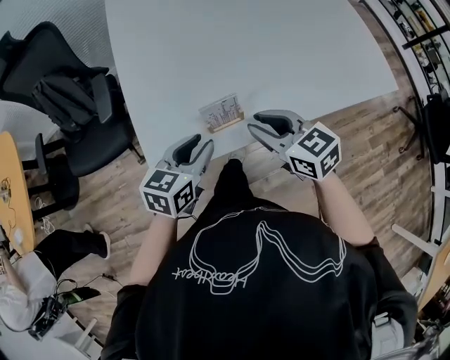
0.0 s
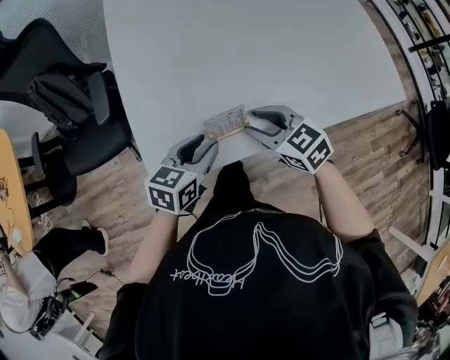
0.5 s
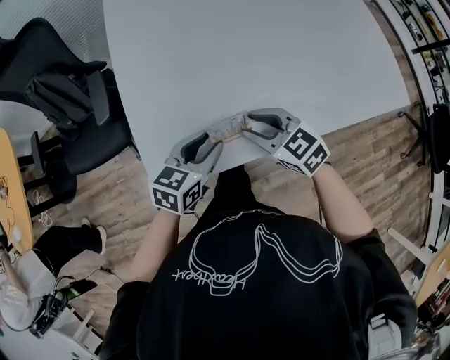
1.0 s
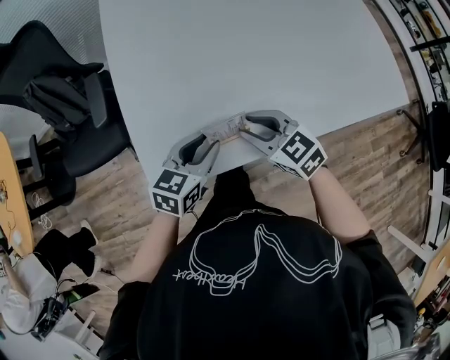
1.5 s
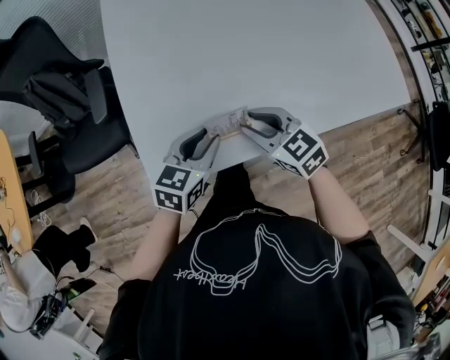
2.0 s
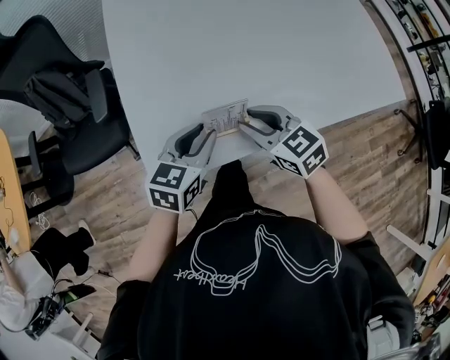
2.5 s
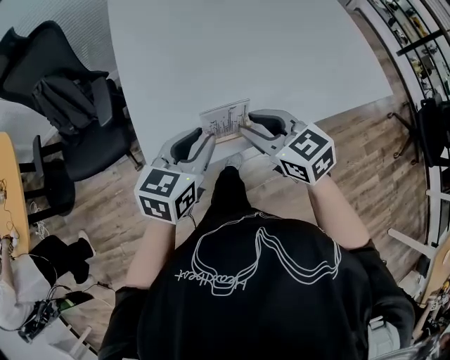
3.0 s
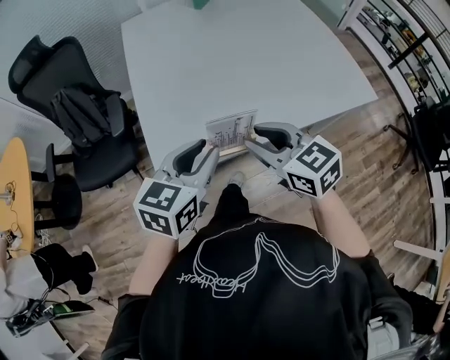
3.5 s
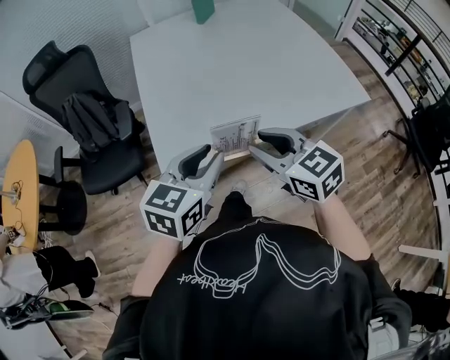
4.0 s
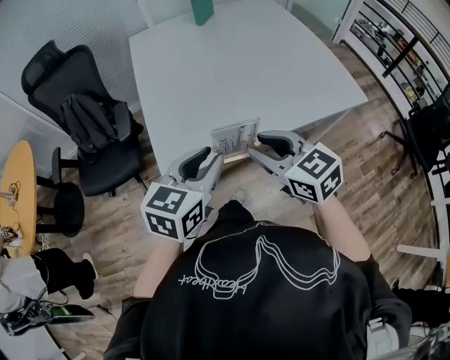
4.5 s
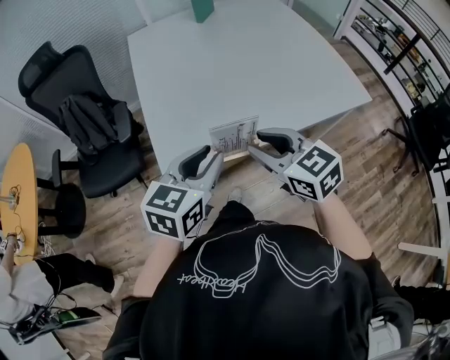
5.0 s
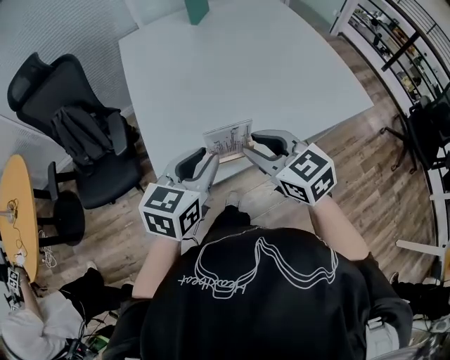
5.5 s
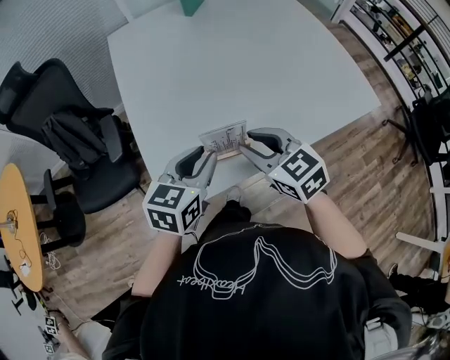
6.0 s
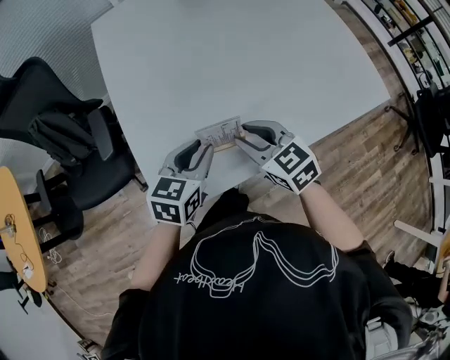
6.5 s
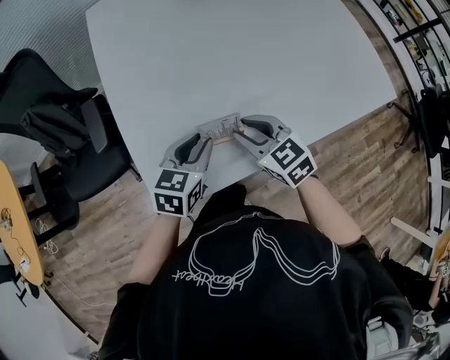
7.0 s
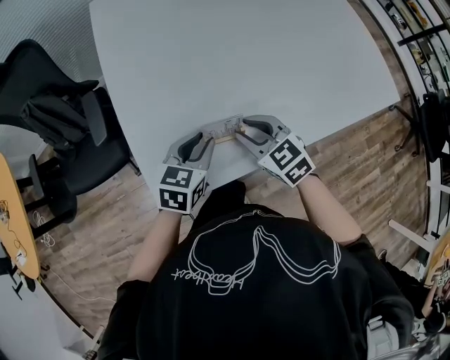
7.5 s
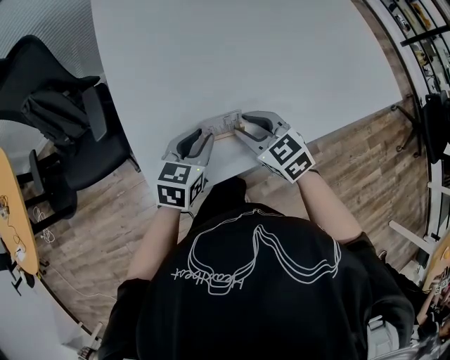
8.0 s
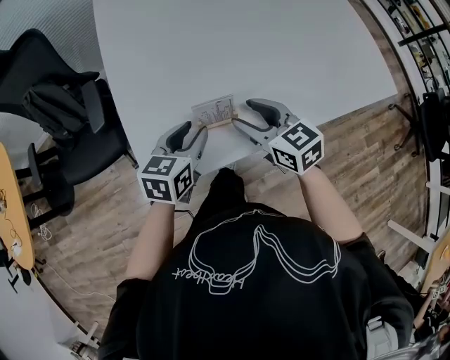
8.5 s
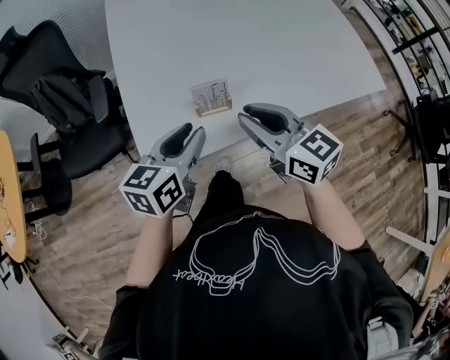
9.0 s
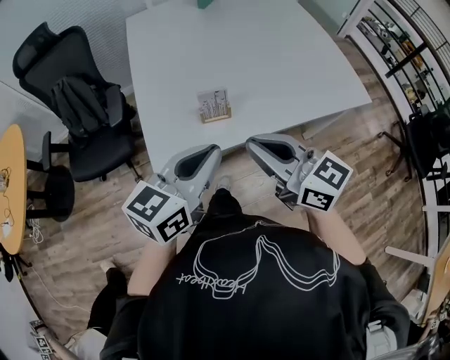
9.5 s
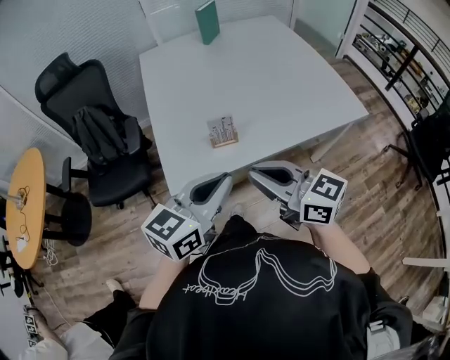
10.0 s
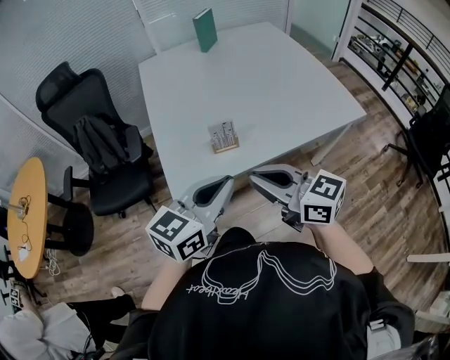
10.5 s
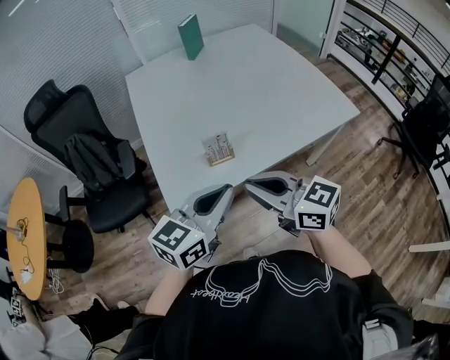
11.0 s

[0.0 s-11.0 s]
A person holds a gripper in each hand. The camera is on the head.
0.0 to 2.0 s: The left gripper moves roughly 5 cm, while the right gripper moves downward, some 5 cm.
2.0 to 3.5 s: Both grippers move upward and backward, some 20 cm.
3.5 to 5.5 s: The right gripper moves approximately 5 cm backward and comes back.
5.5 to 7.5 s: Both grippers travel together downward and forward, some 20 cm.
7.5 to 9.0 s: Both grippers travel together upward and backward, approximately 15 cm. The right gripper swivels approximately 30 degrees, and opens and closes again, while the left gripper rotates about 20 degrees.
9.0 to 11.0 s: Both grippers travel together backward and upward, roughly 20 cm. The left gripper swivels roughly 30 degrees, and closes its fingers.

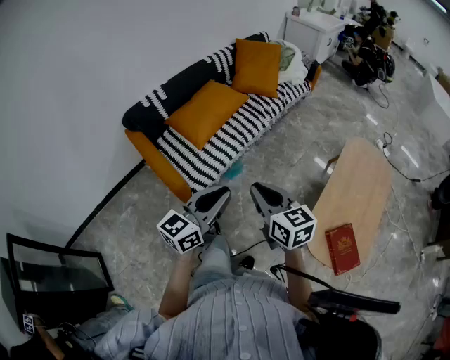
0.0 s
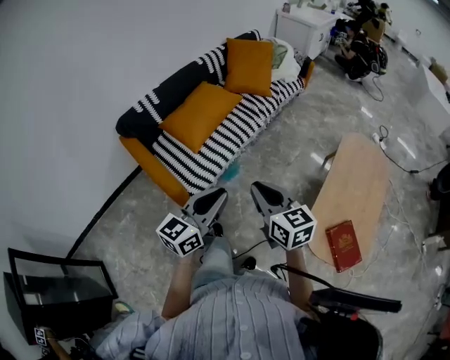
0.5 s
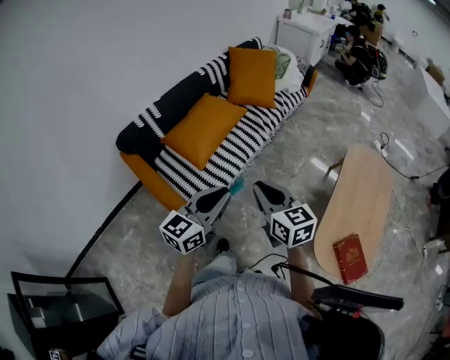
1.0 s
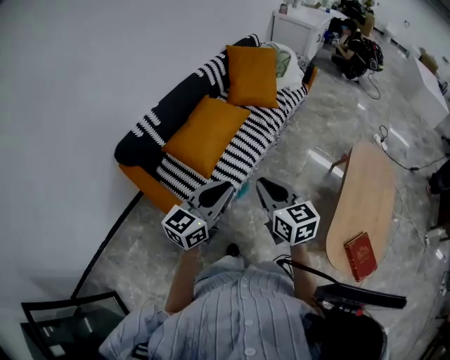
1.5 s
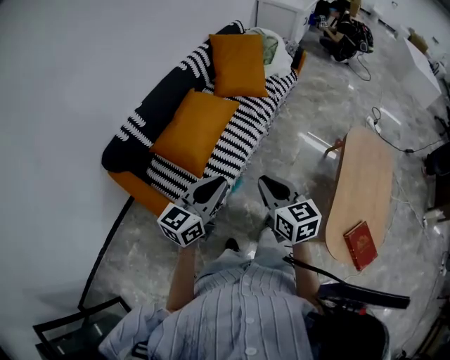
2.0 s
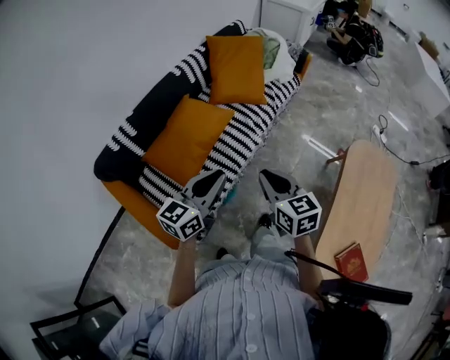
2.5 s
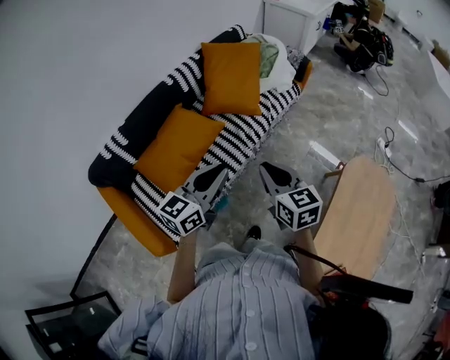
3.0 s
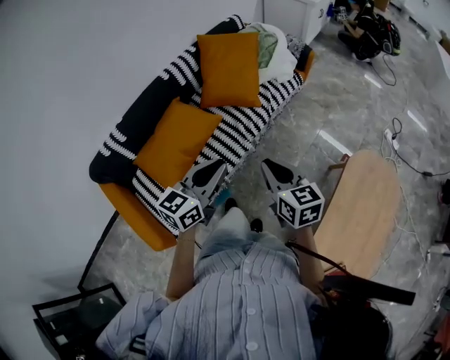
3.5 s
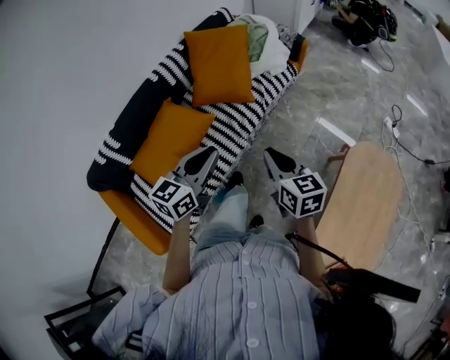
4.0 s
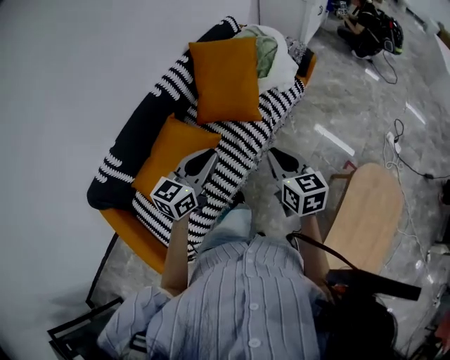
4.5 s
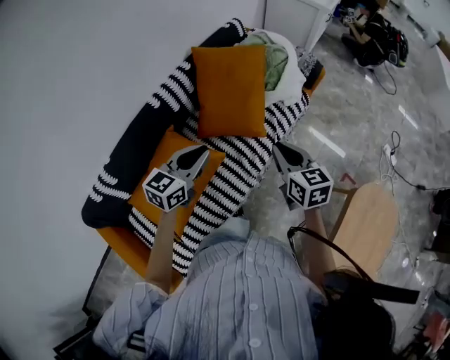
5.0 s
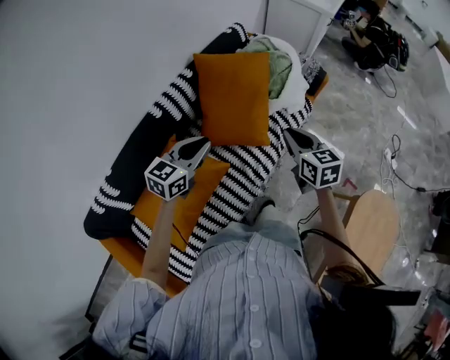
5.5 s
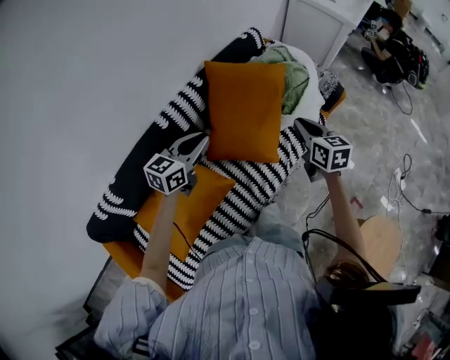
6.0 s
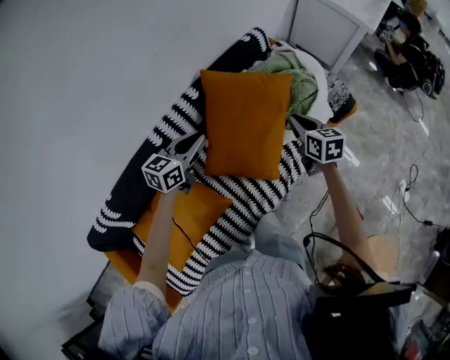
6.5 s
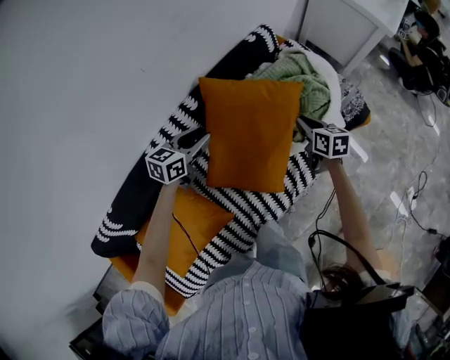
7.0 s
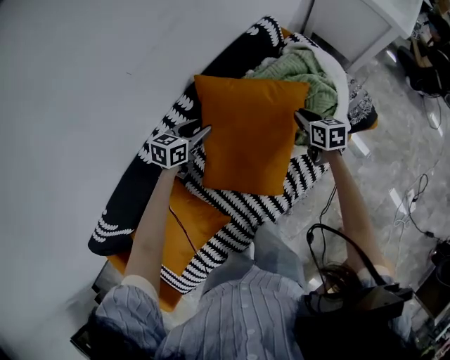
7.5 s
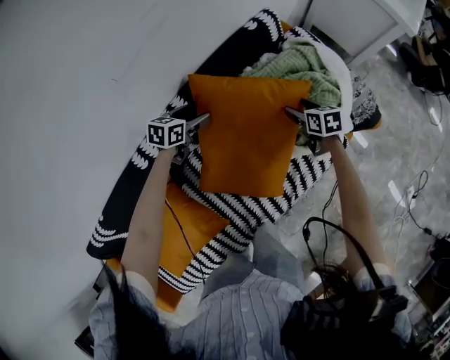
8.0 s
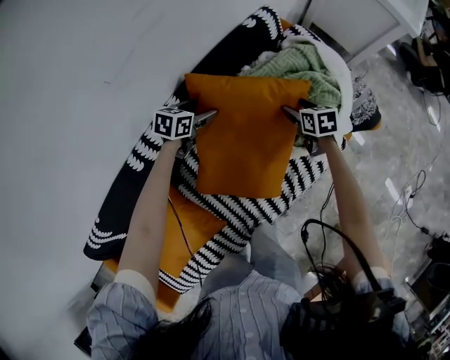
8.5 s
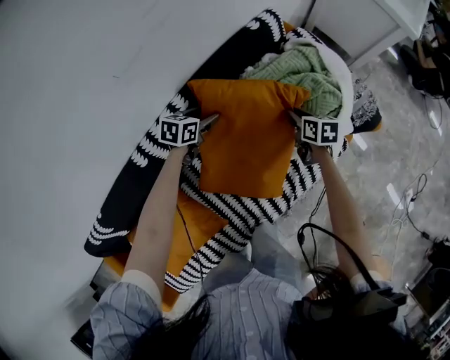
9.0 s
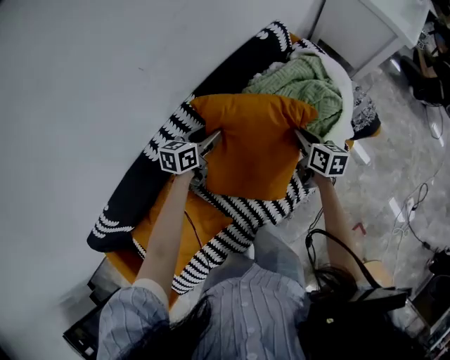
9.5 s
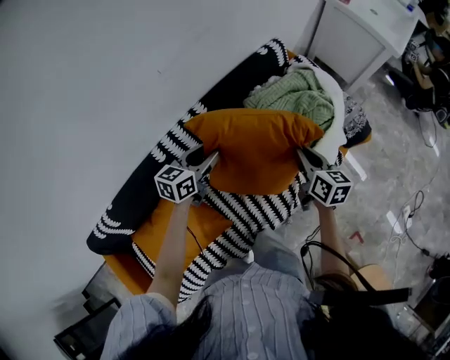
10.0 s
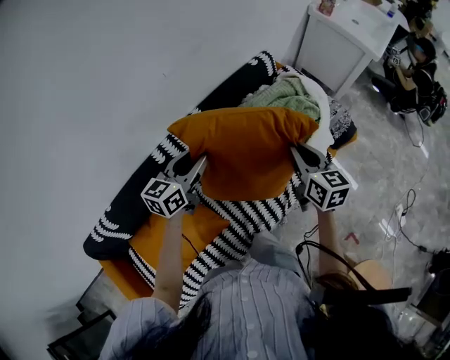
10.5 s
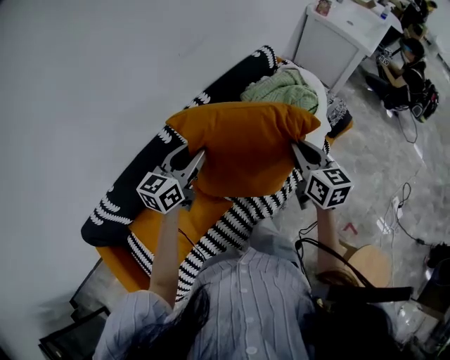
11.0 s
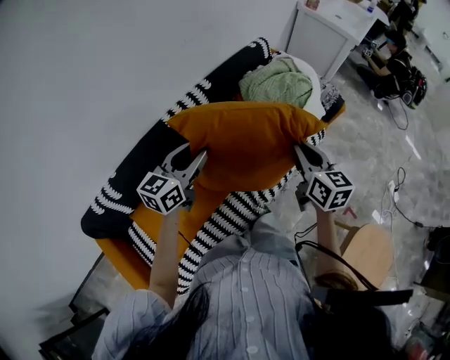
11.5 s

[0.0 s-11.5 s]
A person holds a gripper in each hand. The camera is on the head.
0.0 to 2.0 s: The two grippers go approximately 25 cm forward and to the left.
2.0 to 4.0 s: The two grippers go some 40 cm forward and to the right.
4.0 to 6.0 s: The two grippers travel together, forward, roughly 50 cm.
6.0 to 7.5 s: Both grippers travel together forward and downward, some 35 cm. The left gripper rotates about 20 degrees, and opens up.
7.5 to 9.5 s: The left gripper reaches roughly 10 cm forward, then returns, and opens, then closes again, while the right gripper goes some 5 cm backward, and opens, then closes once more.
9.5 to 11.5 s: The grippers both shift backward and upward by roughly 40 cm. The left gripper turns by about 30 degrees; the right gripper swivels about 30 degrees.

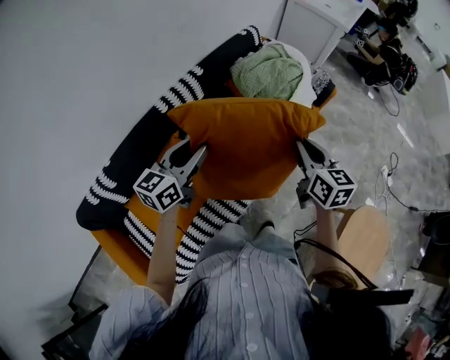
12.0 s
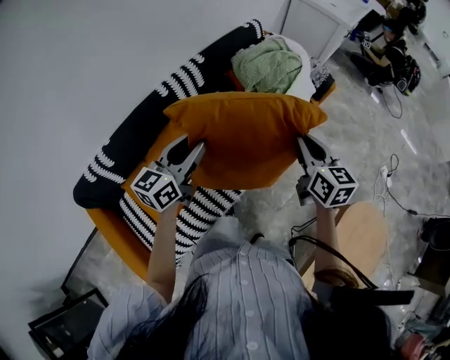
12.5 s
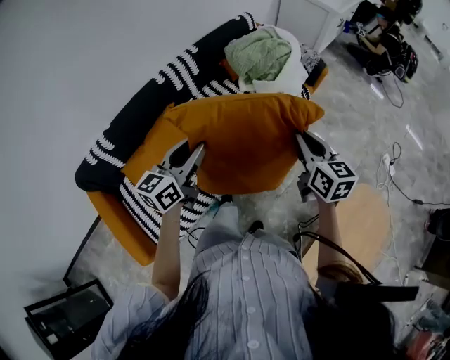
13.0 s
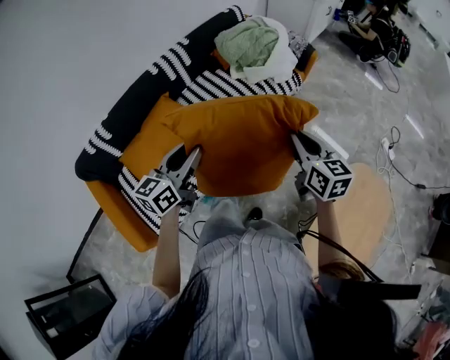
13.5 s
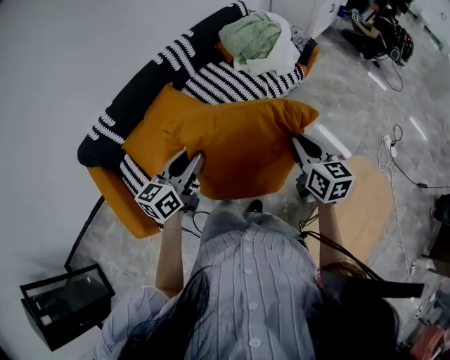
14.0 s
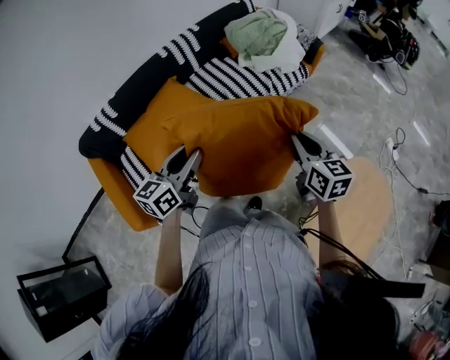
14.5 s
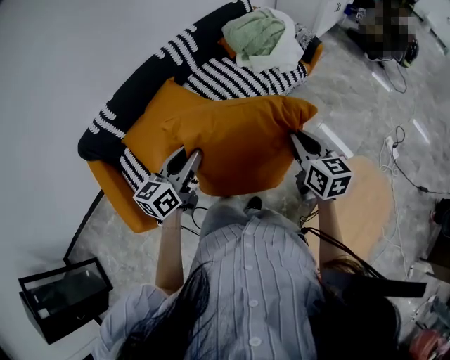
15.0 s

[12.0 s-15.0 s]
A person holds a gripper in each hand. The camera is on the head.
12.0 to 13.5 s: Both grippers travel together backward and to the right, approximately 30 cm.
13.5 to 15.0 s: The two grippers go some 5 cm backward.

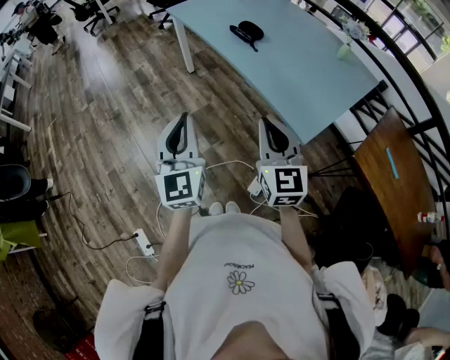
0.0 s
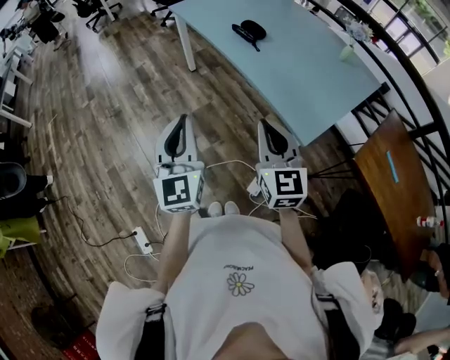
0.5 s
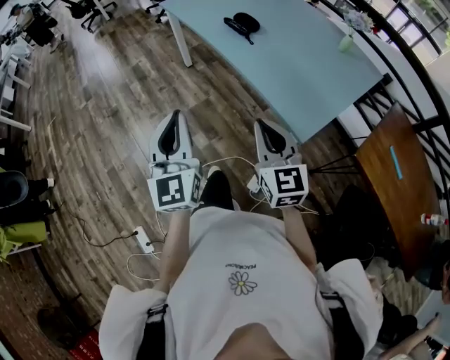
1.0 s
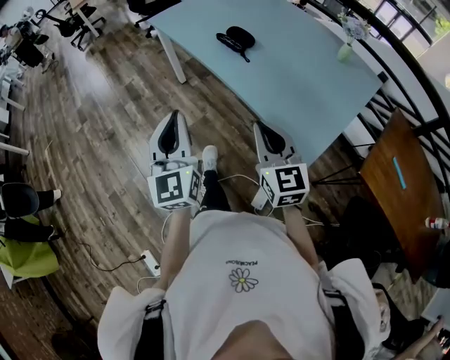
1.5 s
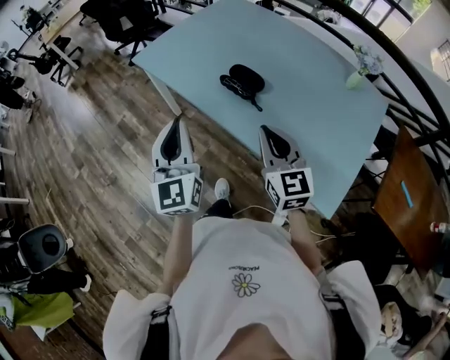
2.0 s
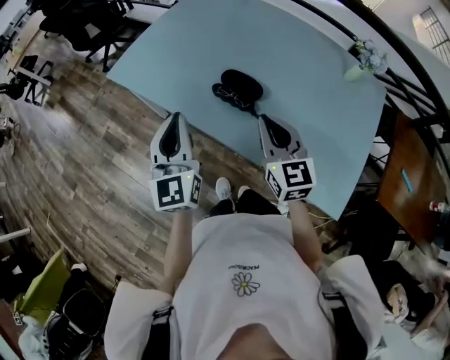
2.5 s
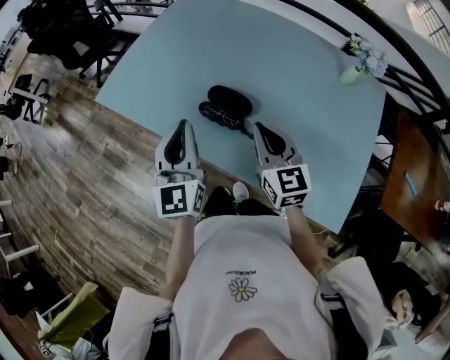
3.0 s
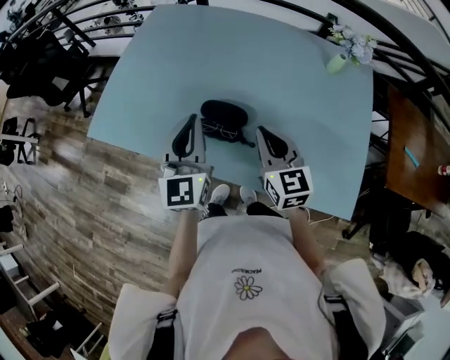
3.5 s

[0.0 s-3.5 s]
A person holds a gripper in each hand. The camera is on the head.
0.0 to 2.0 s: Both grippers travel together forward, about 40 cm.
2.0 to 3.5 s: Both grippers travel together forward, about 25 cm. The left gripper swivels about 30 degrees, while the right gripper turns by approximately 20 degrees.
